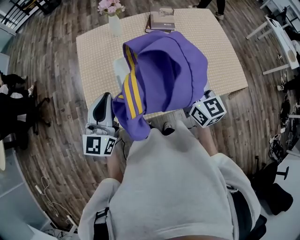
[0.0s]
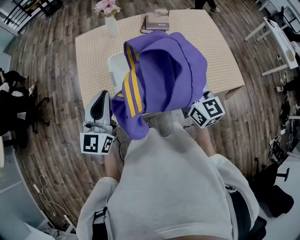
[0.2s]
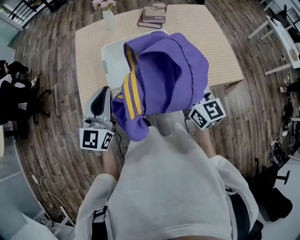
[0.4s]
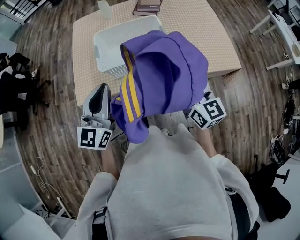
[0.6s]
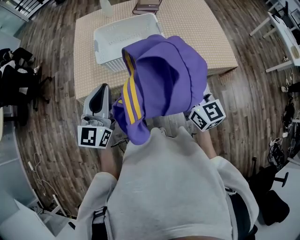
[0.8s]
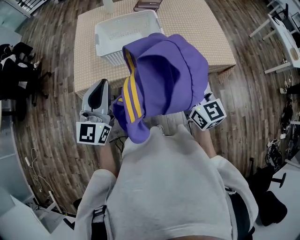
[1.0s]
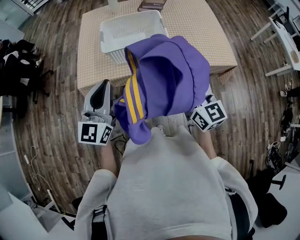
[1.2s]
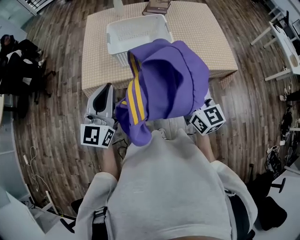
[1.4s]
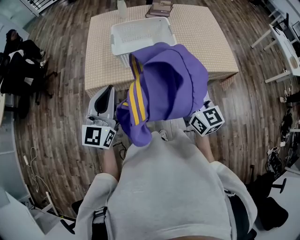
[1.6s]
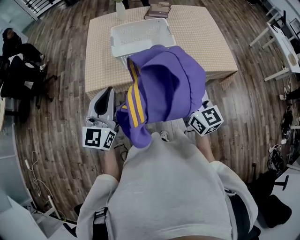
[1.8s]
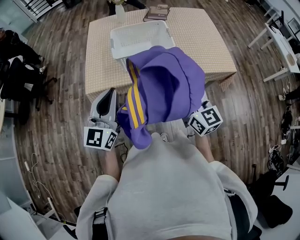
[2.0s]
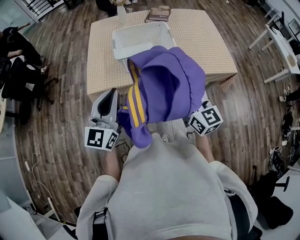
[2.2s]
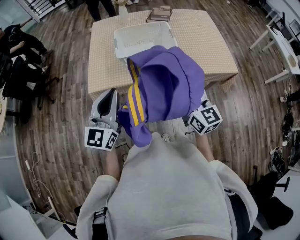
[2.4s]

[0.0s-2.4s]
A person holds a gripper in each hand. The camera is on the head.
0.0s to 1.2s: Both grippers travel together backward and to the right, about 30 cm.
1.2s to 2.4s: The right gripper moves to the left, approximately 5 cm; the left gripper changes place by some 5 cm.

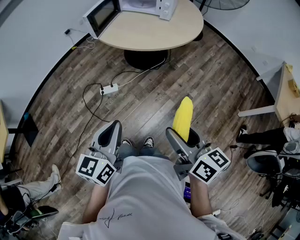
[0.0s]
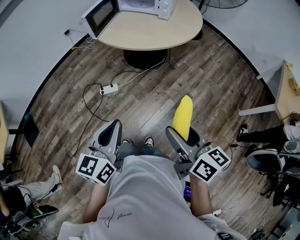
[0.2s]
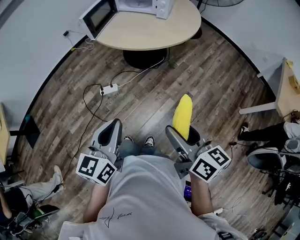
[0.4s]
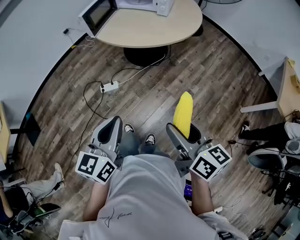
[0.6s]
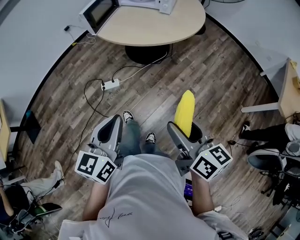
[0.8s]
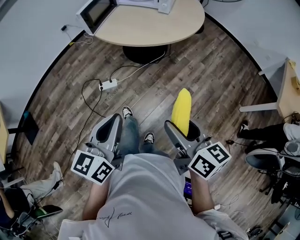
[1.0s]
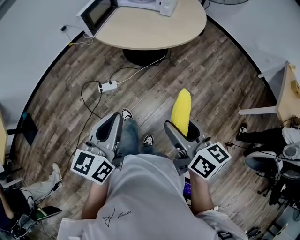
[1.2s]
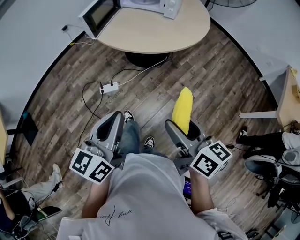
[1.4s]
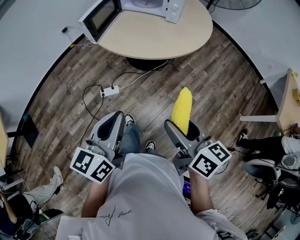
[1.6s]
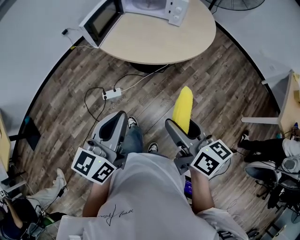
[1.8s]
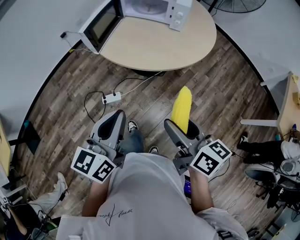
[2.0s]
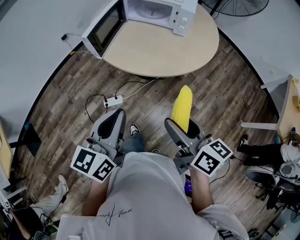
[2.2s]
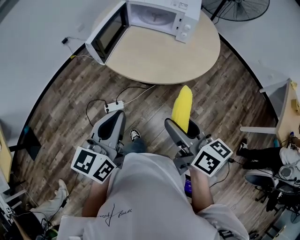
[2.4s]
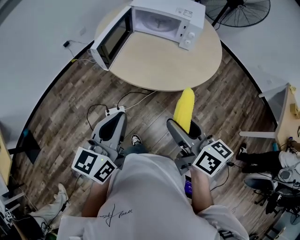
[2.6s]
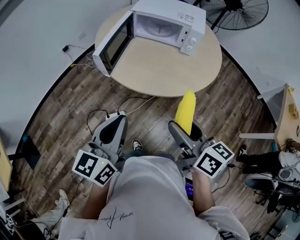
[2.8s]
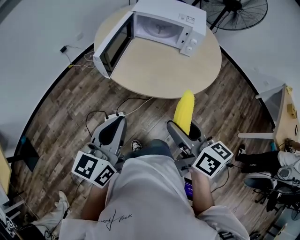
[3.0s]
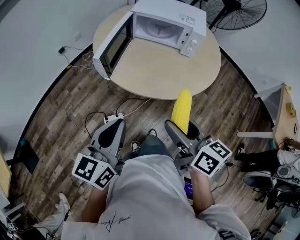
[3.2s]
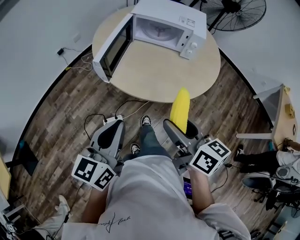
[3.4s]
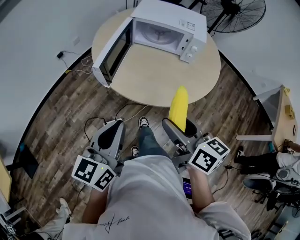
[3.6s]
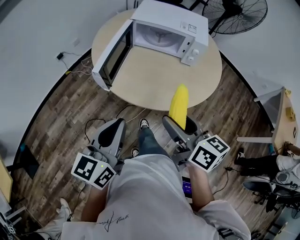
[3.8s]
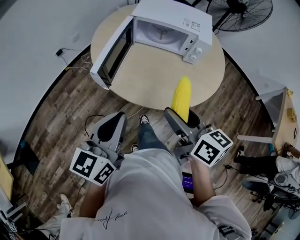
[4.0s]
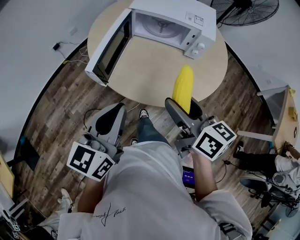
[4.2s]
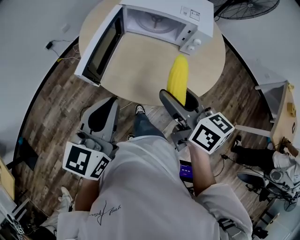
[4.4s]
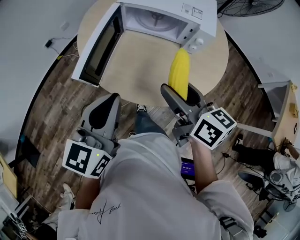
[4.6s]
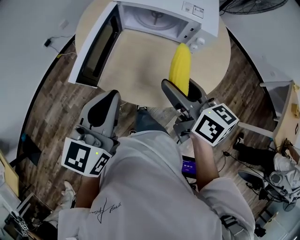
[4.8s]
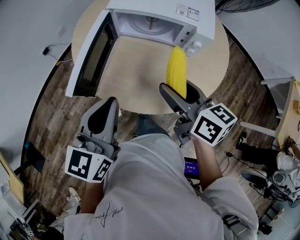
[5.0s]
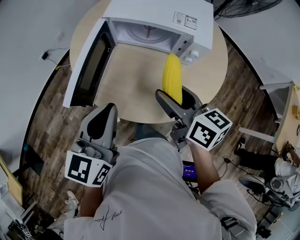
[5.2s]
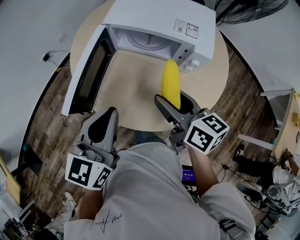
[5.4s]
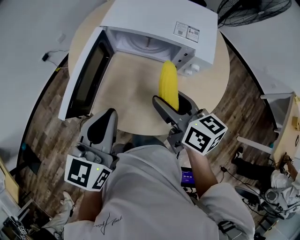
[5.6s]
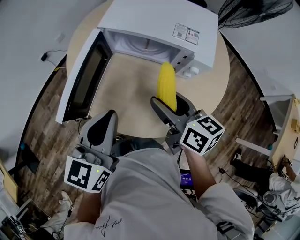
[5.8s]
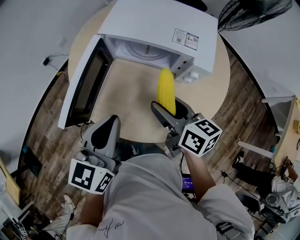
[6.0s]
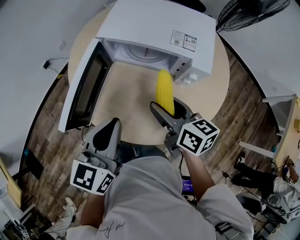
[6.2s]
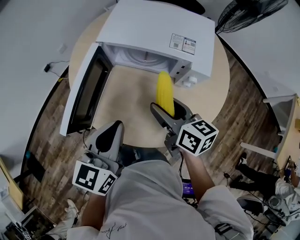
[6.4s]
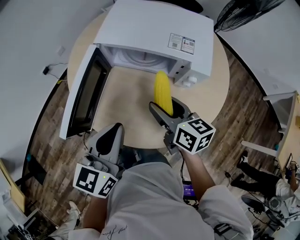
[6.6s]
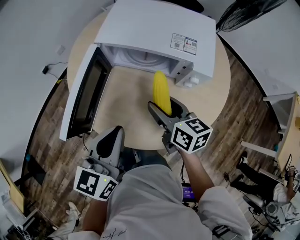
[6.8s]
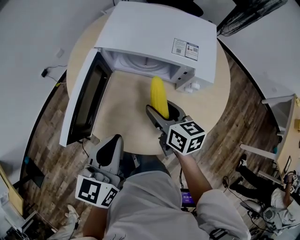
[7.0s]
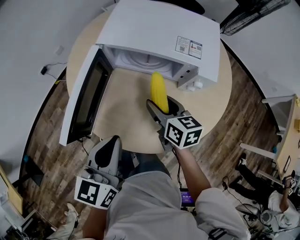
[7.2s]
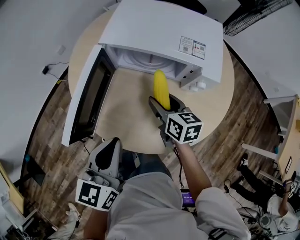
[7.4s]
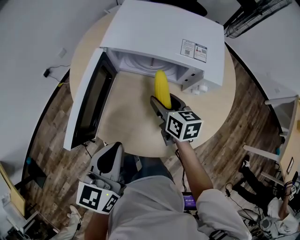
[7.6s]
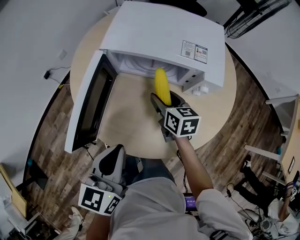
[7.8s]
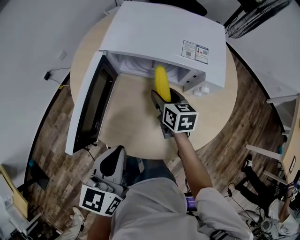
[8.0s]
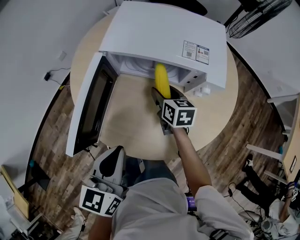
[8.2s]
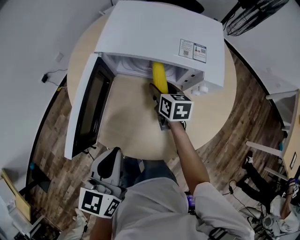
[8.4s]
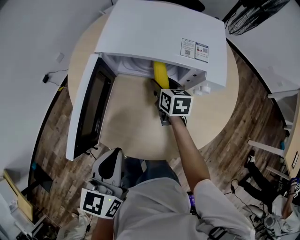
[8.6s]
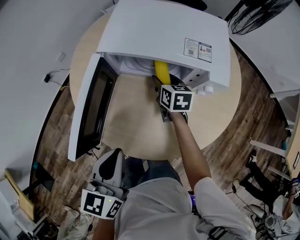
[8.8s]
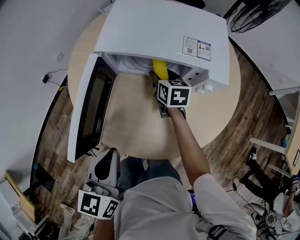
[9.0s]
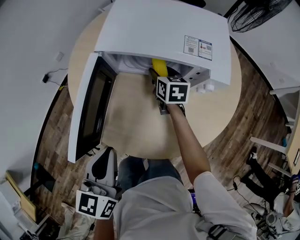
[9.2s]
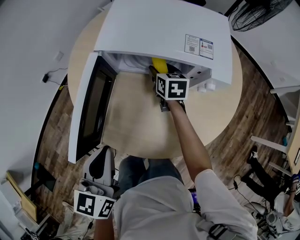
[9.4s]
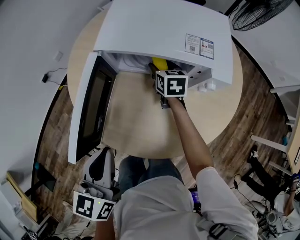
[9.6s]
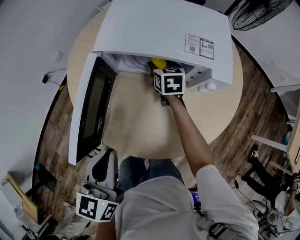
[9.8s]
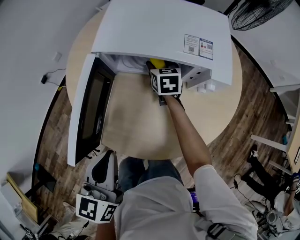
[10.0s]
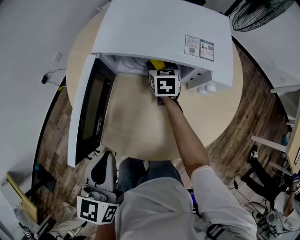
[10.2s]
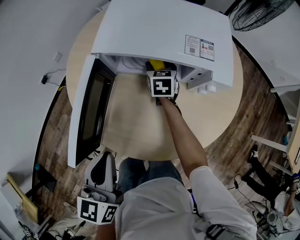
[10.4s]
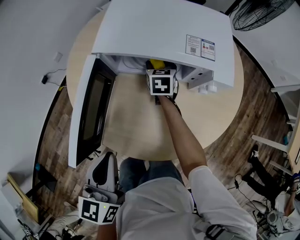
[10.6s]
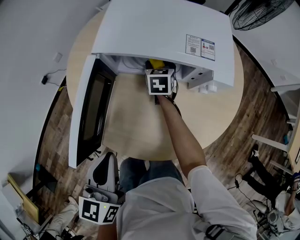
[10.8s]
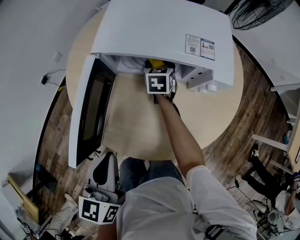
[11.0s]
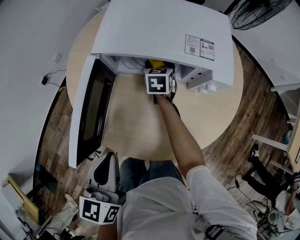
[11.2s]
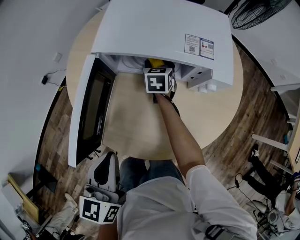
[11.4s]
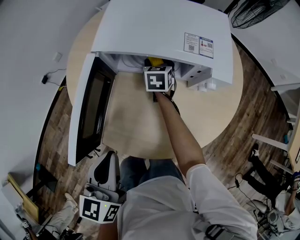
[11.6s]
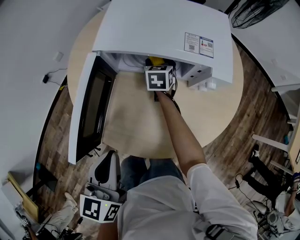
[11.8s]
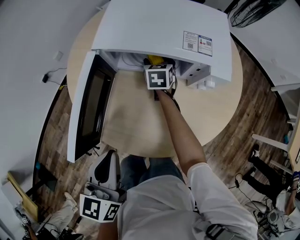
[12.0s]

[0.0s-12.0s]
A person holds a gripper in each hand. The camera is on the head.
0.0s to 1.6s: The grippers both shift forward by approximately 15 cm.
1.6s to 3.0s: The two grippers go approximately 25 cm forward and to the left.
3.0s to 4.4s: Both grippers move forward, some 20 cm.
4.4s to 6.0s: The right gripper moves forward, downward and to the right, some 20 cm; the left gripper shifts roughly 15 cm forward and to the right.
6.0s to 7.6s: The right gripper moves downward and forward, roughly 15 cm.
7.6s to 9.0s: The right gripper shifts approximately 15 cm forward and downward.
9.0s to 10.4s: The right gripper travels forward by approximately 5 cm.
10.4s to 12.0s: The grippers make only small movements.

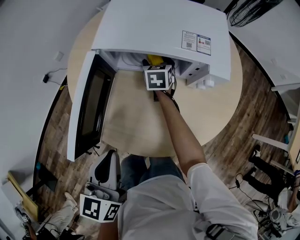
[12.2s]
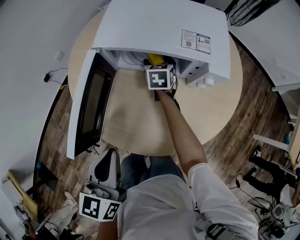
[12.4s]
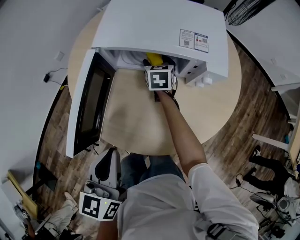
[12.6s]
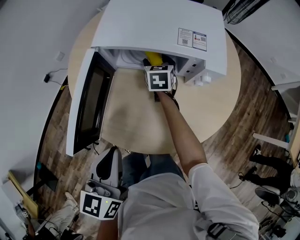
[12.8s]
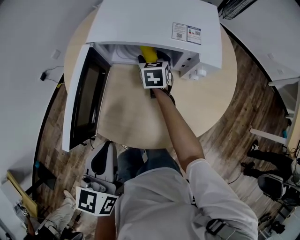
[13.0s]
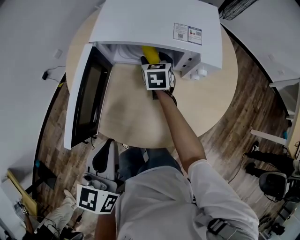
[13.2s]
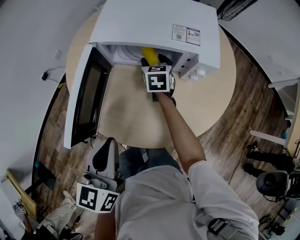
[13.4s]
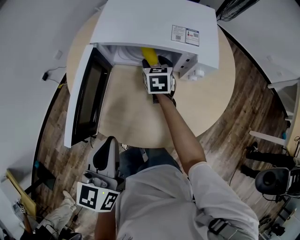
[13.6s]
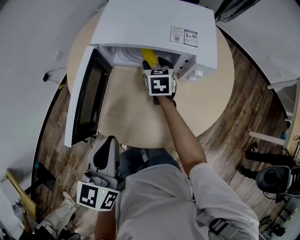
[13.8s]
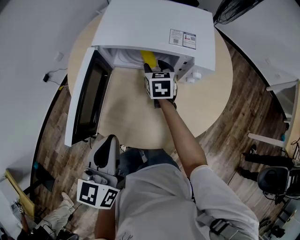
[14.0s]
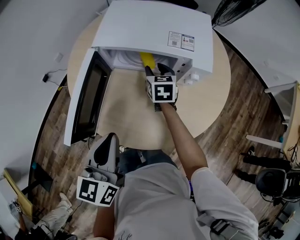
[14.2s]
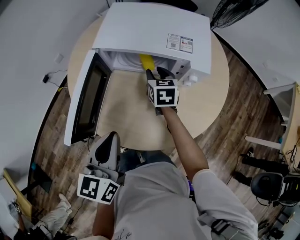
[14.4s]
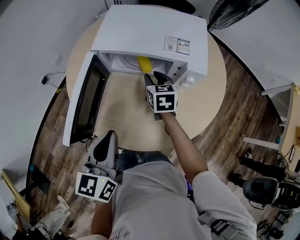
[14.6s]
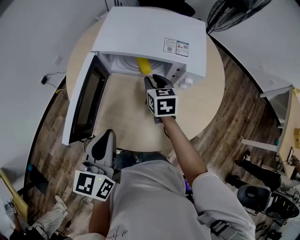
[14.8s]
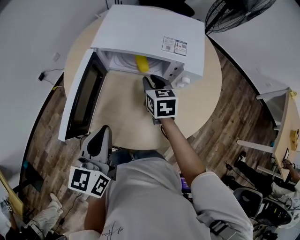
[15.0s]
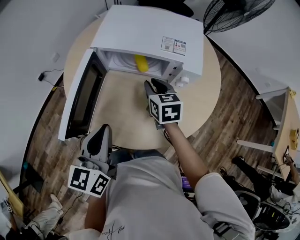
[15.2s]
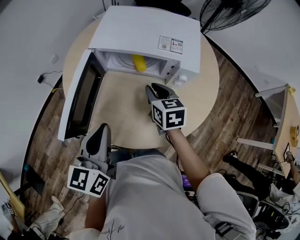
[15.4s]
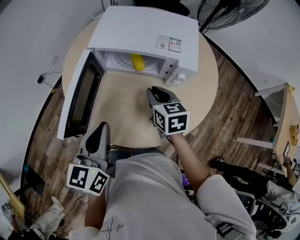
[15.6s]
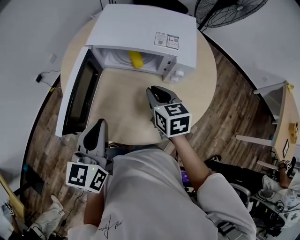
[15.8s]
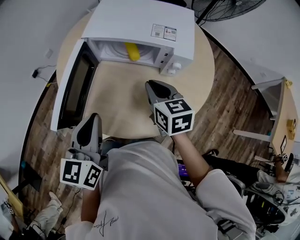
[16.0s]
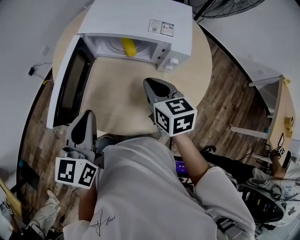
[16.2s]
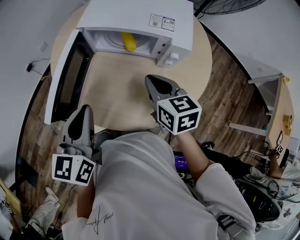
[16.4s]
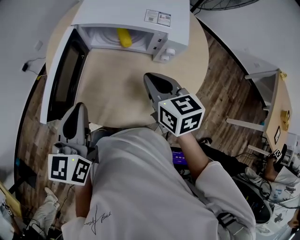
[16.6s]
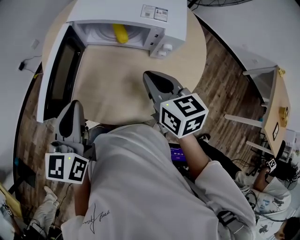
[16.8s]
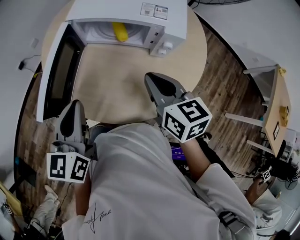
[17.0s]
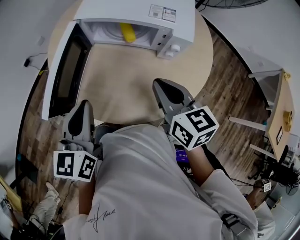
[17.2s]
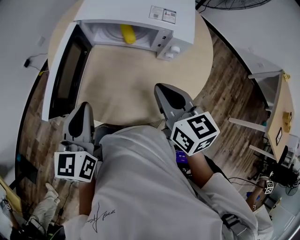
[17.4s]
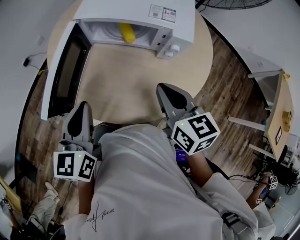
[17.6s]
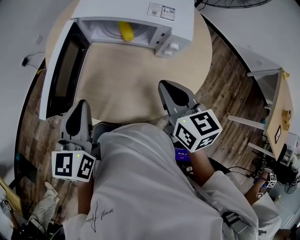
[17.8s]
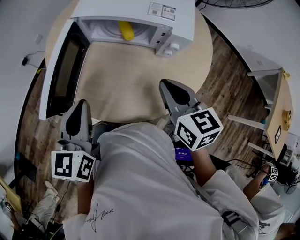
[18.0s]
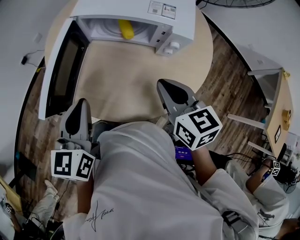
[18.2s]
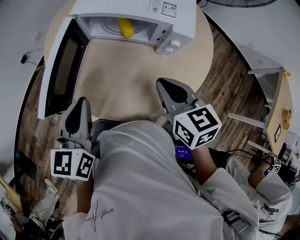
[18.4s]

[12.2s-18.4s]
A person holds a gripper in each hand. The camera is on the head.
12.2s to 13.8s: The right gripper goes roughly 5 cm backward.
13.8s to 15.4s: The right gripper heads backward and upward, covering roughly 15 cm, and closes up.
15.4s to 16.8s: The right gripper heads backward and upward, covering some 10 cm.
16.8s to 18.4s: There are only small adjustments of the grippers.

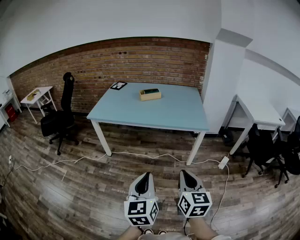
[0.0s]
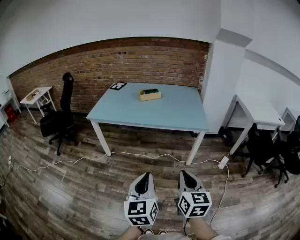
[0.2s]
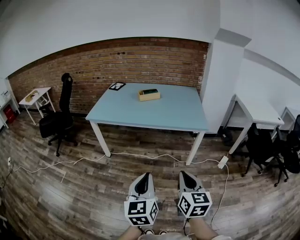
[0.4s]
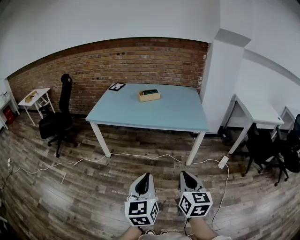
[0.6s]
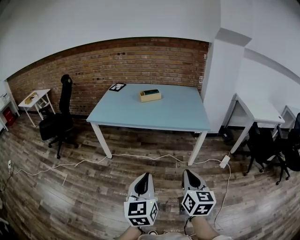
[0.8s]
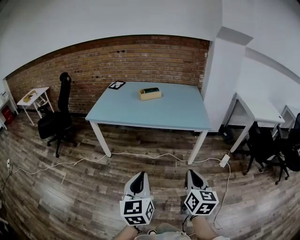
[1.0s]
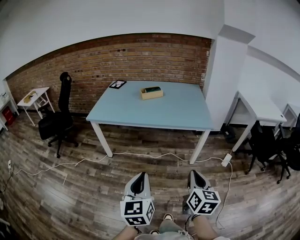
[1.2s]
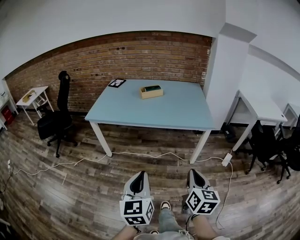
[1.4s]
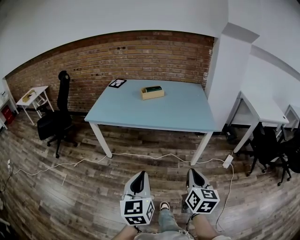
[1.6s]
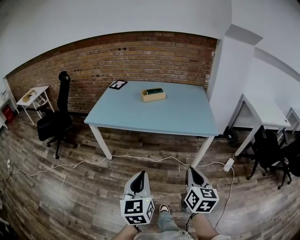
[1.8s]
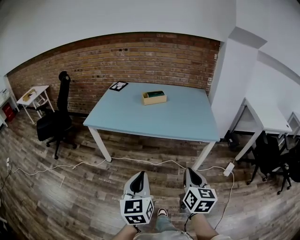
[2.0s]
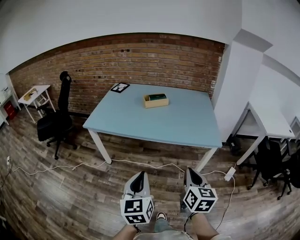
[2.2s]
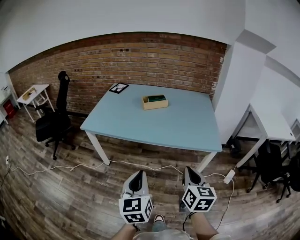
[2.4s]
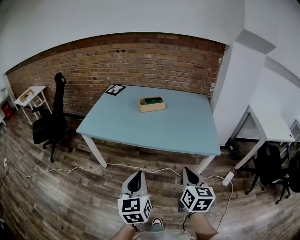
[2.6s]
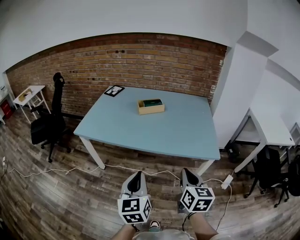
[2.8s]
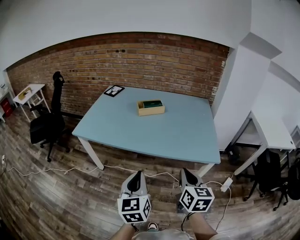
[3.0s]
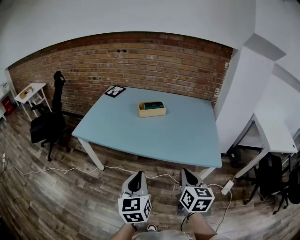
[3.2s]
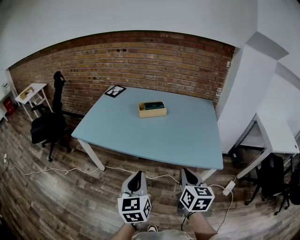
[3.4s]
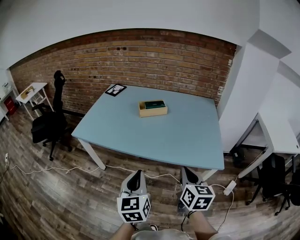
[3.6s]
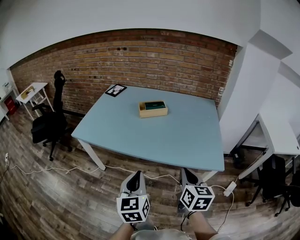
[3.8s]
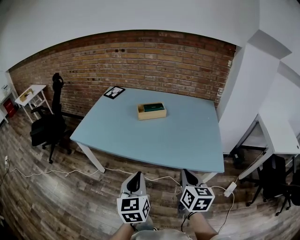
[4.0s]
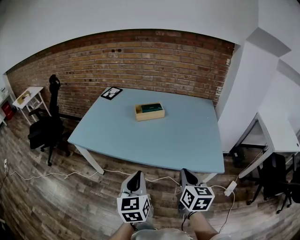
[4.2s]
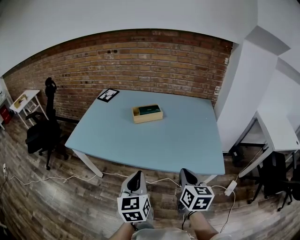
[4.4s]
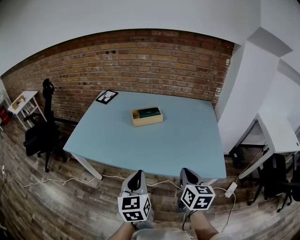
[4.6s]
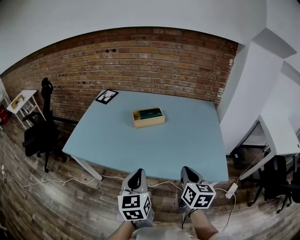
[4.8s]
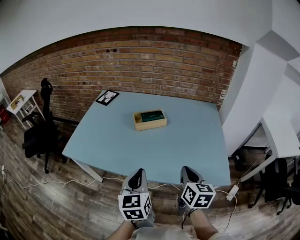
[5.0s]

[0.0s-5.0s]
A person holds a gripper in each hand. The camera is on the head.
0.0s to 1.6s: The left gripper heads forward and to the left, covering about 10 cm, while the right gripper heads forward, covering about 10 cm.
1.6s to 3.4s: The grippers both shift forward by about 30 cm.
3.4s to 5.0s: The grippers both shift forward by some 20 cm.
